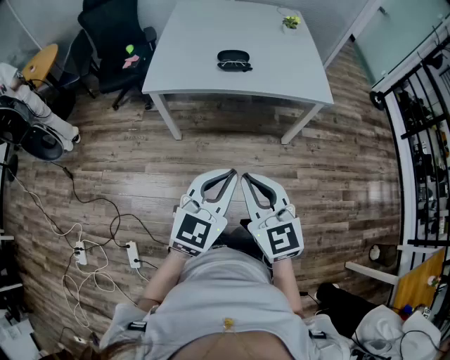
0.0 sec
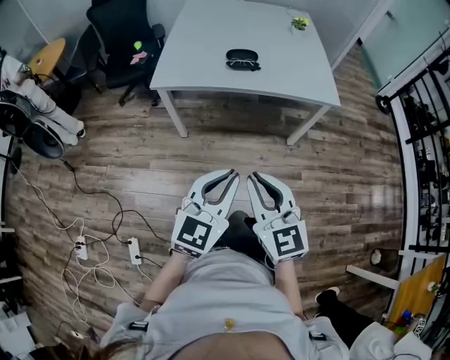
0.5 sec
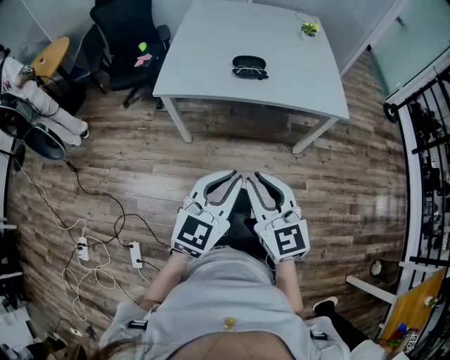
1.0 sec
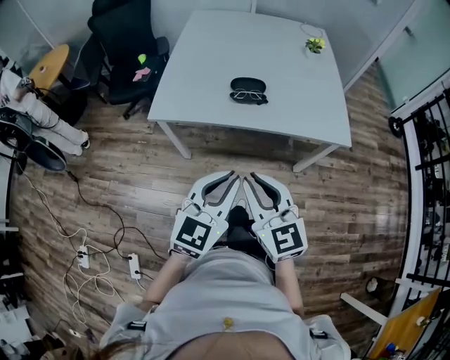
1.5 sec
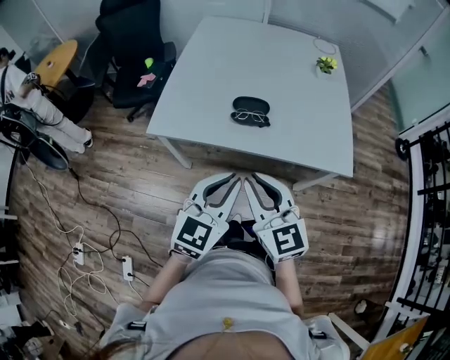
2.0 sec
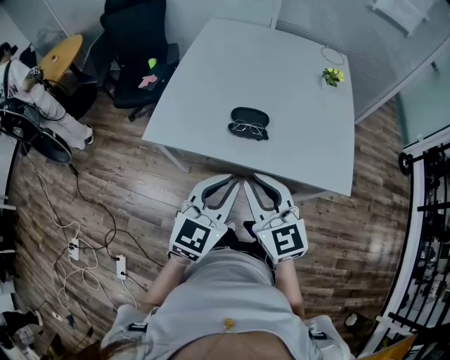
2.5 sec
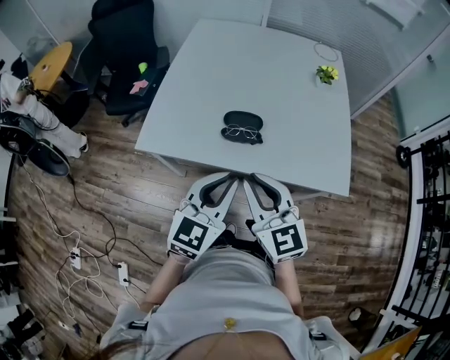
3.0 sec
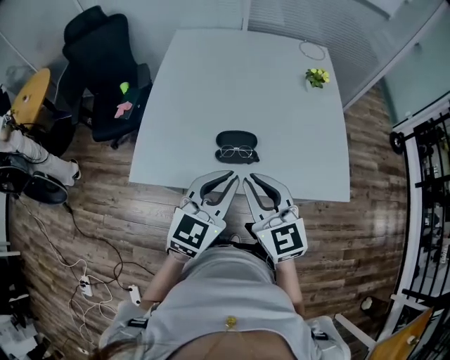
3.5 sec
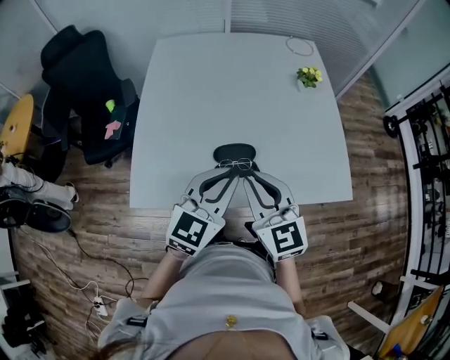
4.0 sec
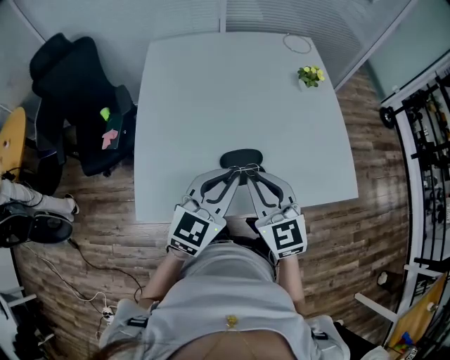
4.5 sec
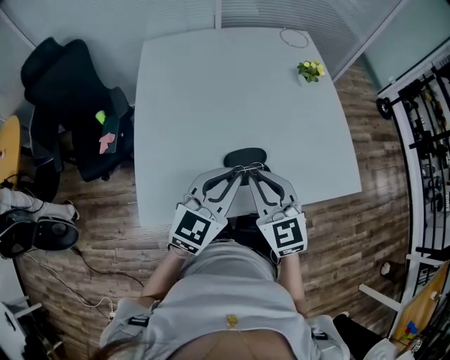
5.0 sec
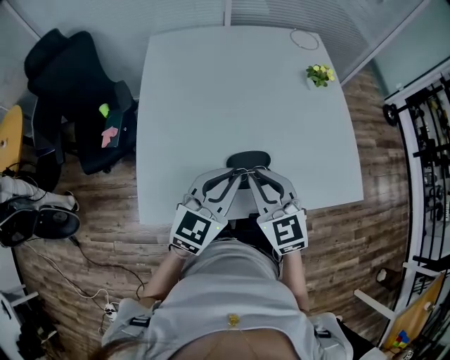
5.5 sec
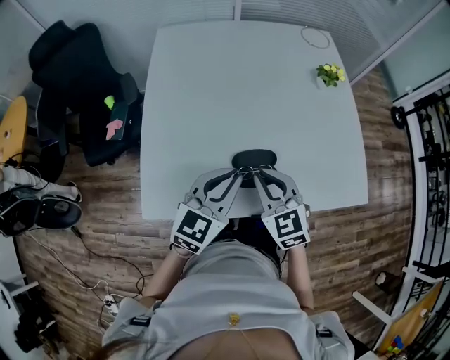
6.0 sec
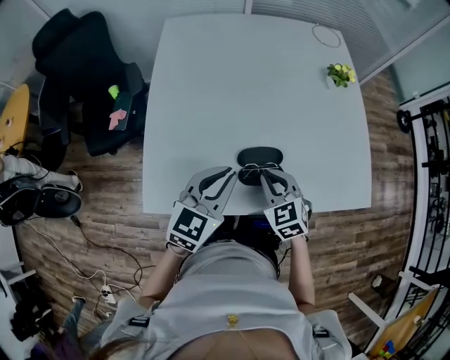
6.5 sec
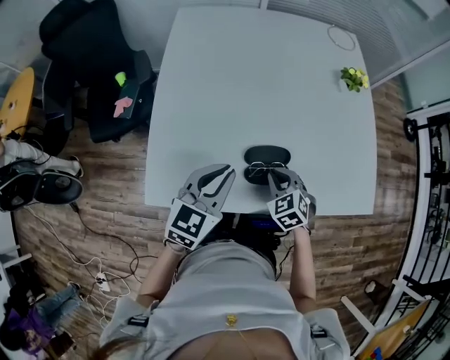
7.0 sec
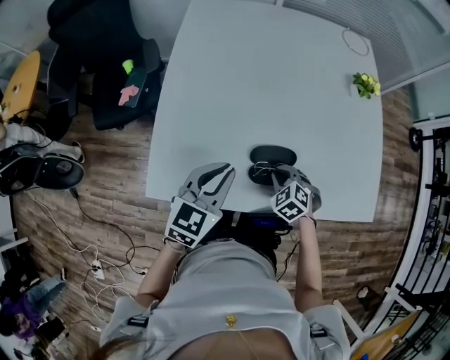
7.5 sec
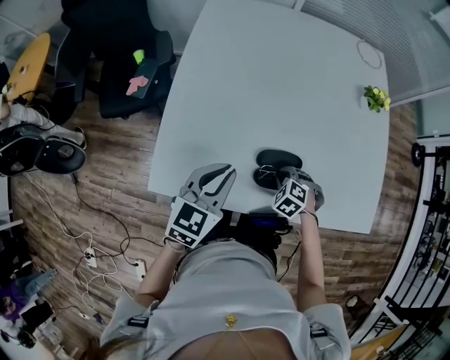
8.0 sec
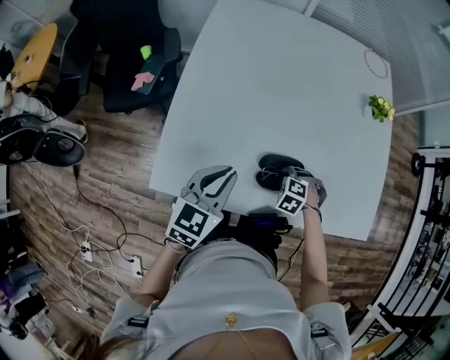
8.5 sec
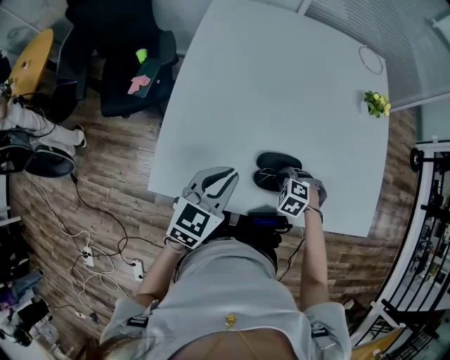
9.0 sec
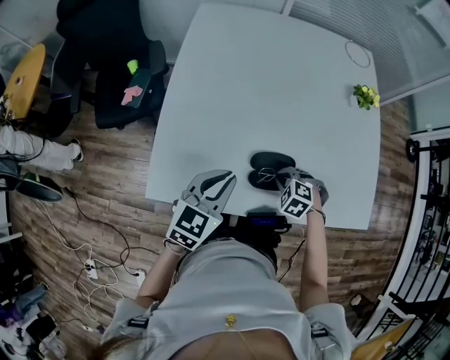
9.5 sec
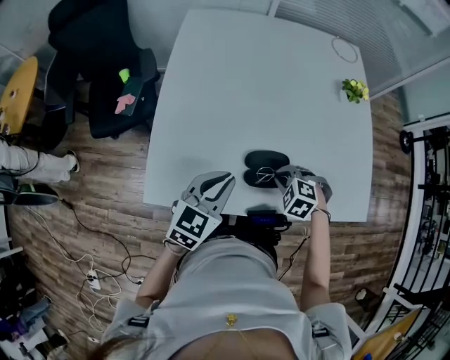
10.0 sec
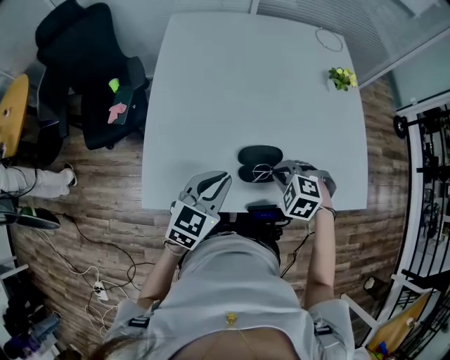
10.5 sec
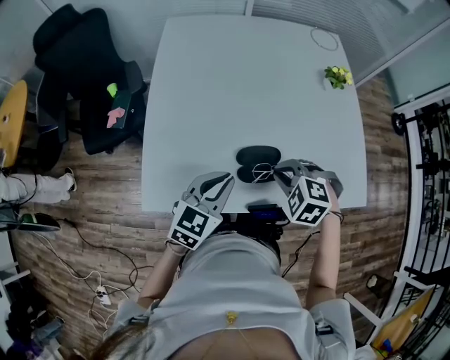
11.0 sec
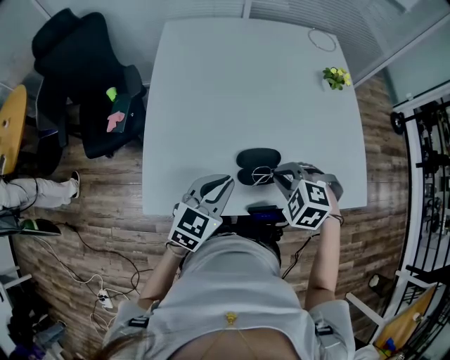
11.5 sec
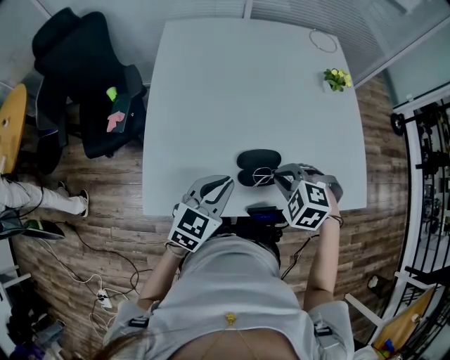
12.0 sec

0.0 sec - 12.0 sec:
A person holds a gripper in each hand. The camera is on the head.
0.0 sec - 2.0 sec: The grippers both shift forward by approximately 30 cm.
2.0 sec - 4.0 sec: The grippers both shift forward by approximately 25 cm.
4.0 sec - 6.0 sec: The right gripper travels downward and forward by some 10 cm, while the left gripper is displaced to the left, forward and downward by approximately 10 cm.
6.0 sec - 8.0 sec: The right gripper moves downward, some 20 cm, and points its fingers approximately 40 degrees further downward, while the left gripper goes about 10 cm to the left and downward.
8.0 sec - 10.0 sec: The right gripper is displaced upward by about 5 cm.
10.0 sec - 12.0 sec: The right gripper is displaced upward by roughly 10 cm.

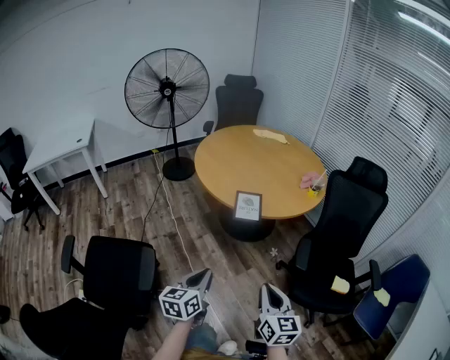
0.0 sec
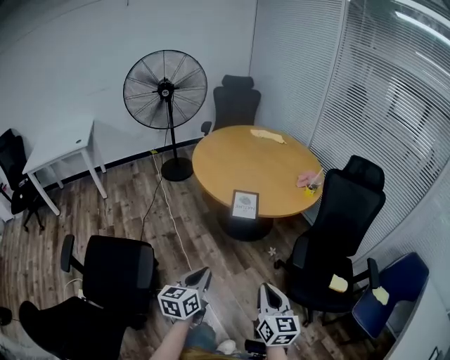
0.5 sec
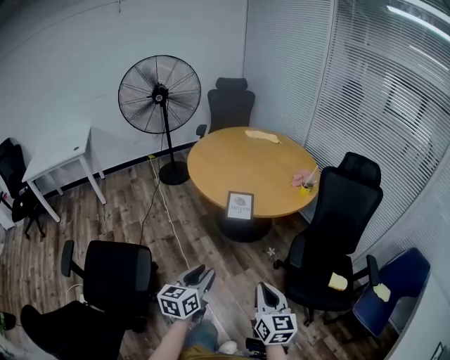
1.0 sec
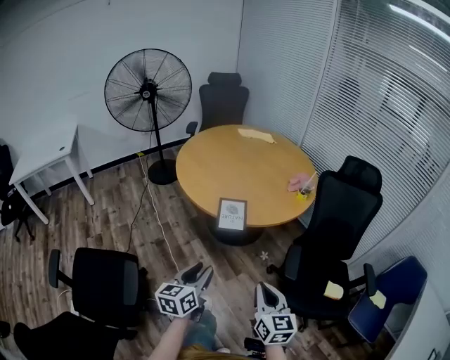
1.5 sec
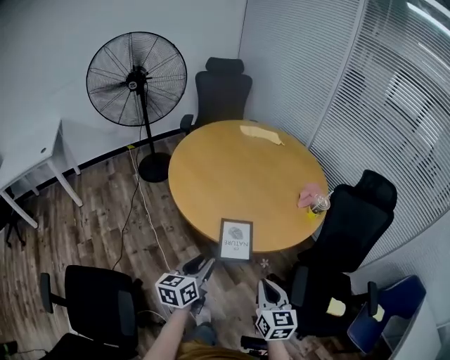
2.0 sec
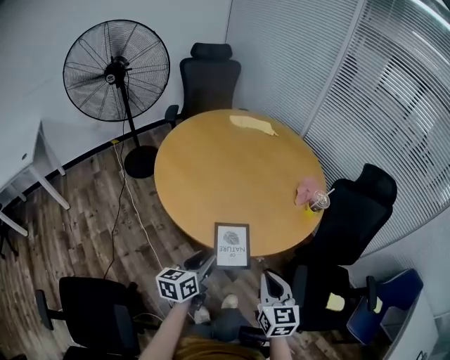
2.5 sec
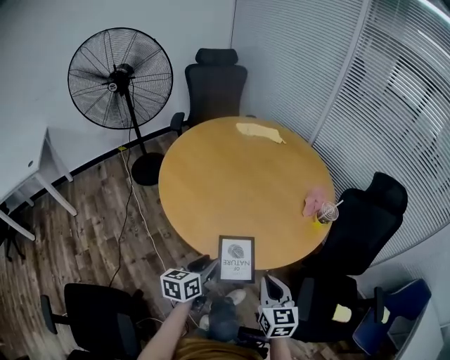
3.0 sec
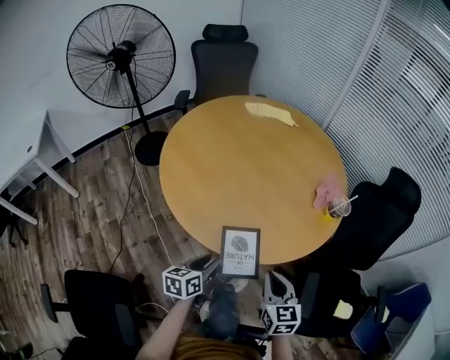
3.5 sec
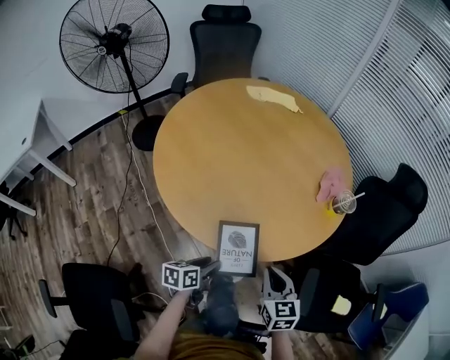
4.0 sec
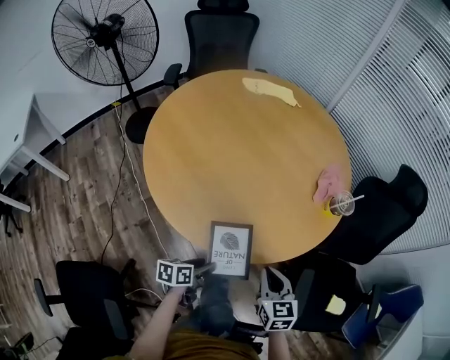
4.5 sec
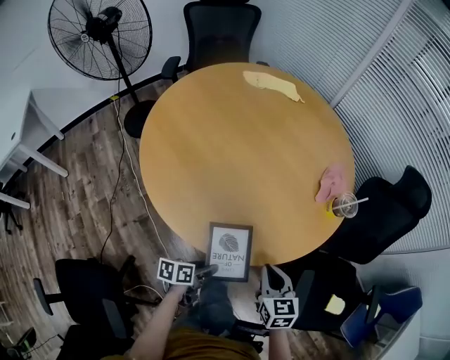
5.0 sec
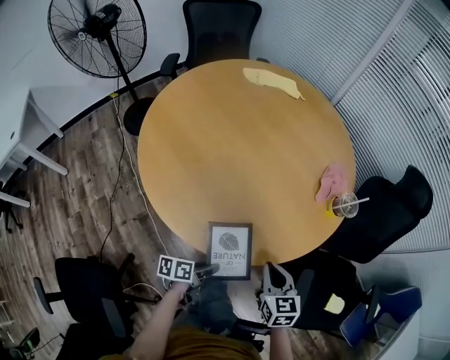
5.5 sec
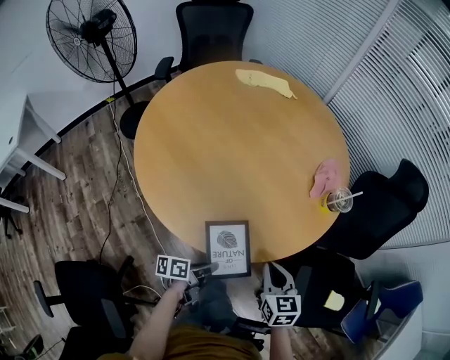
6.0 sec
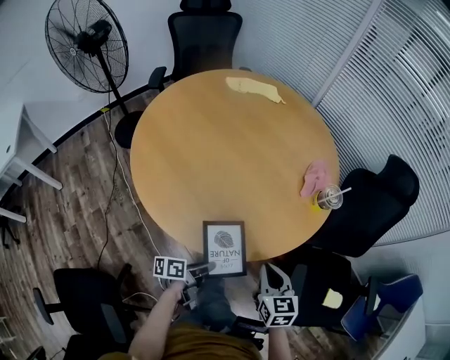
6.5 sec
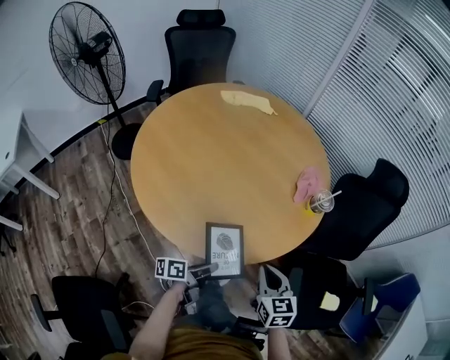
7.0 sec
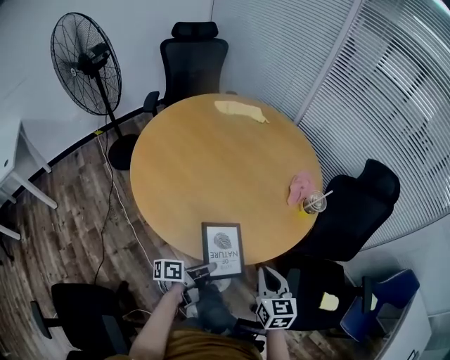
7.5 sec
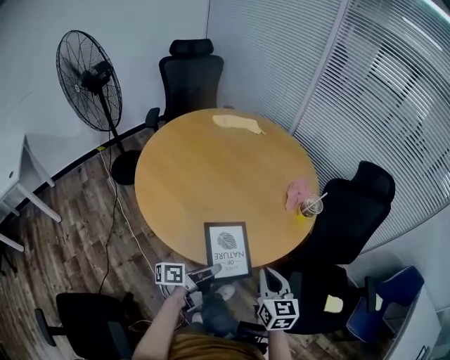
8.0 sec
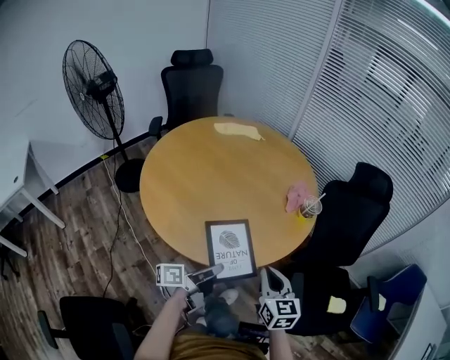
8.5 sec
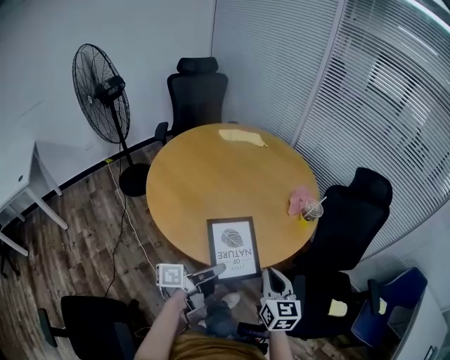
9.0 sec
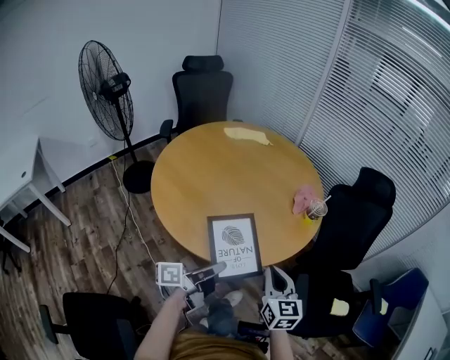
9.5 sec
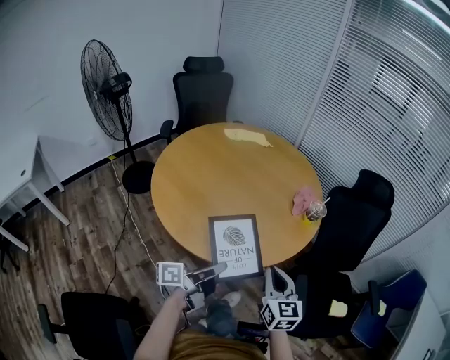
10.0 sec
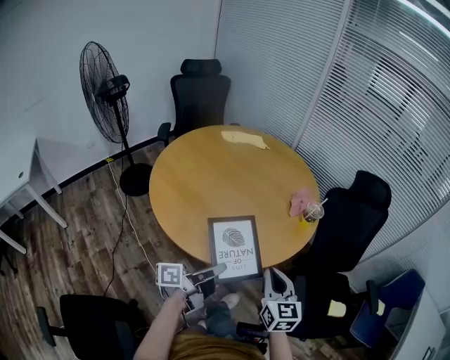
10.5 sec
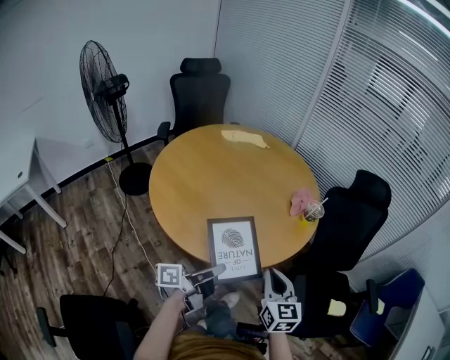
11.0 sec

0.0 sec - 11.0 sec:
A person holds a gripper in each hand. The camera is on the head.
0.0 sec - 2.0 sec: The grippers both shift forward by some 30 cm. The left gripper opens up.
2.0 sec - 3.5 sec: Both grippers travel together forward and downward, roughly 15 cm.
3.5 sec - 5.5 sec: The left gripper heads downward and to the right, covering roughly 15 cm, and rotates some 40 degrees. Meanwhile the right gripper shifts about 10 cm forward and downward.
5.5 sec - 7.5 sec: The grippers both shift upward by about 10 cm.
7.5 sec - 9.0 sec: The right gripper heads upward, covering some 5 cm. The left gripper shifts roughly 15 cm upward, and turns by about 20 degrees.
9.0 sec - 11.0 sec: The grippers stay close to where they were, moving slightly.

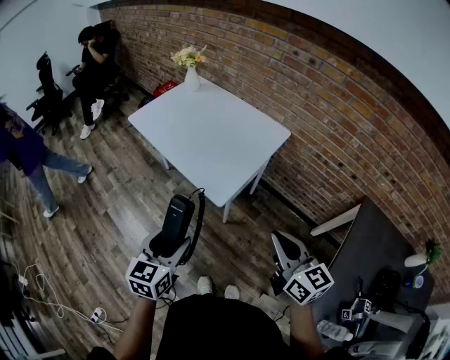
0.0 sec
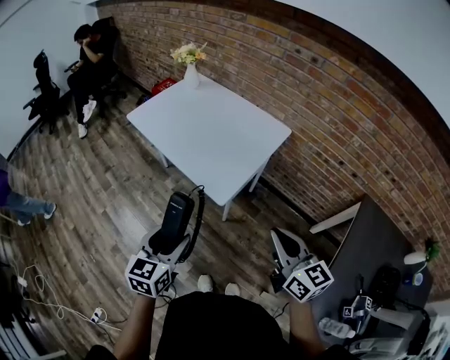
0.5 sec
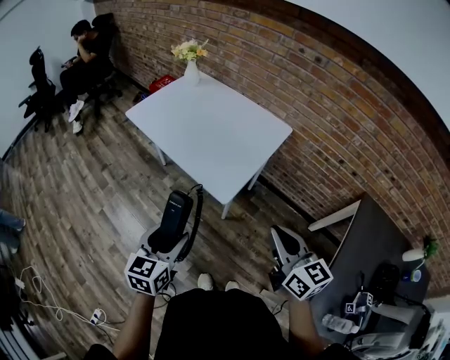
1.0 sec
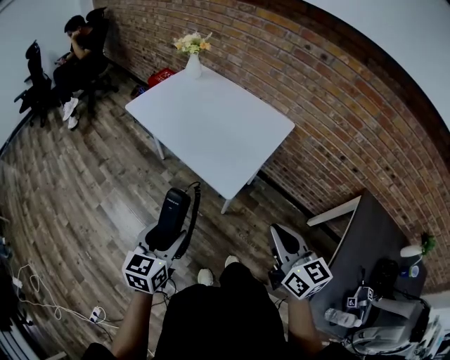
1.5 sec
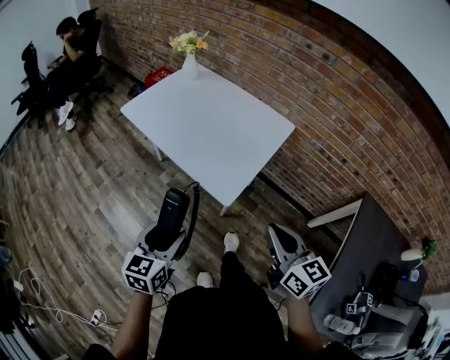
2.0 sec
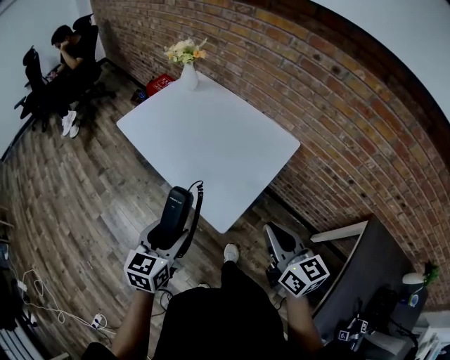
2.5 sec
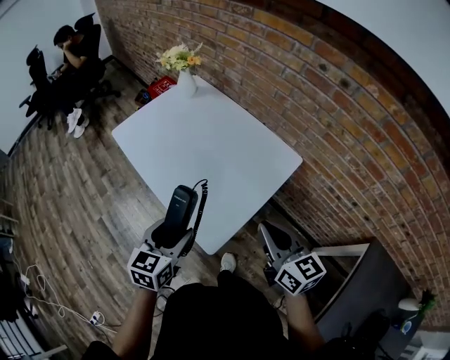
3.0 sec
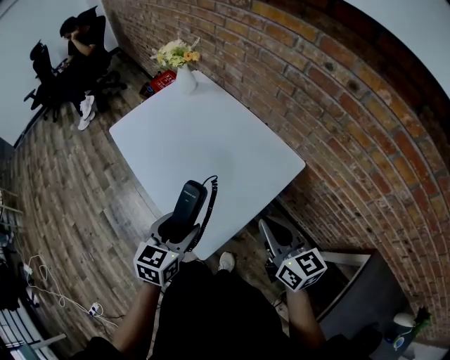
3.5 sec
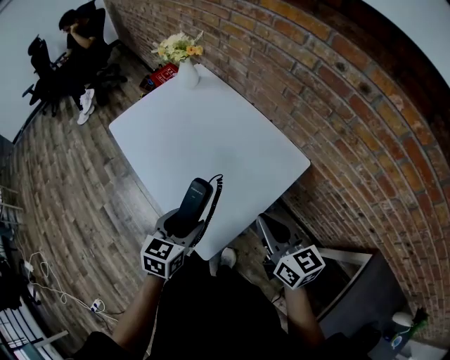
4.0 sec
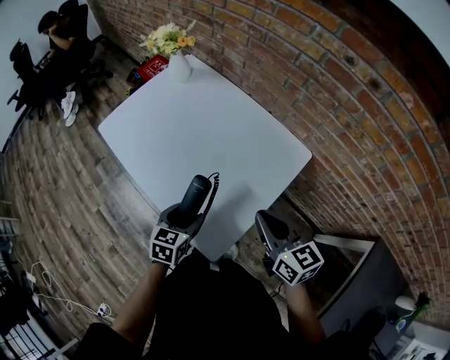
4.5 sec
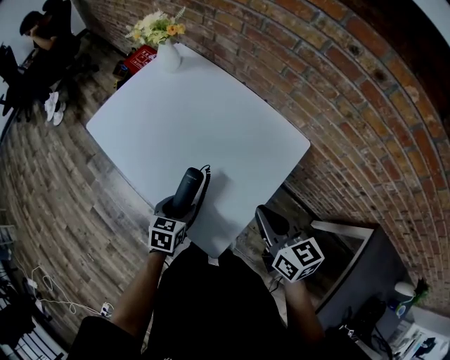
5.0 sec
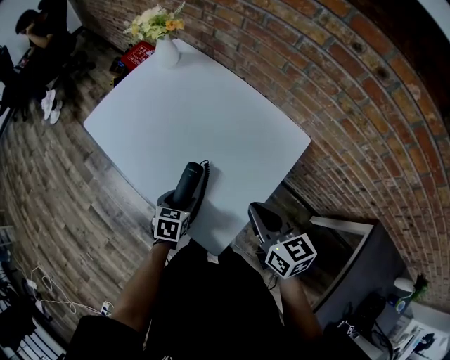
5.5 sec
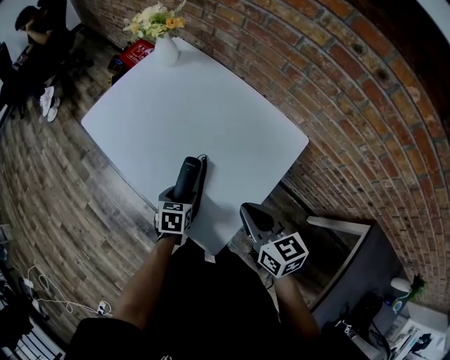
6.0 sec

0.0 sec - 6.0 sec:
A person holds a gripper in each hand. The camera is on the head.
0.0 sec - 2.0 sec: The left gripper shifts approximately 10 cm to the left and forward. The right gripper moves to the left, approximately 5 cm.
2.0 sec - 4.0 sec: The right gripper travels forward by approximately 30 cm. Meanwhile the left gripper is displaced forward and to the right by roughly 30 cm.
4.0 sec - 6.0 sec: The right gripper travels to the left and downward by some 10 cm. Meanwhile the left gripper shifts approximately 20 cm downward and forward, and swivels roughly 20 degrees.
